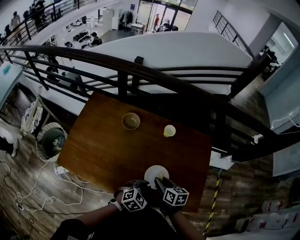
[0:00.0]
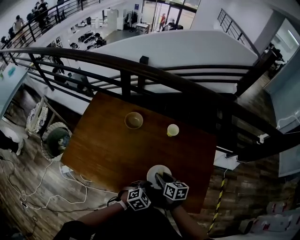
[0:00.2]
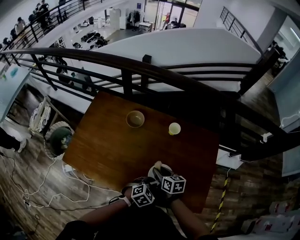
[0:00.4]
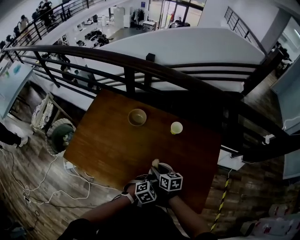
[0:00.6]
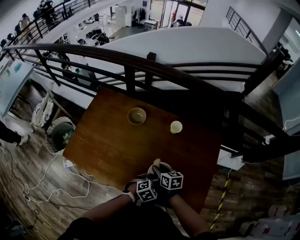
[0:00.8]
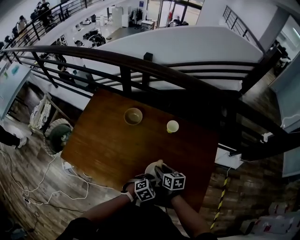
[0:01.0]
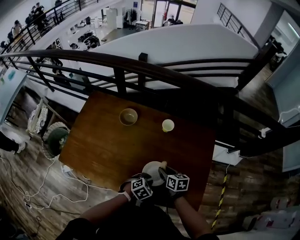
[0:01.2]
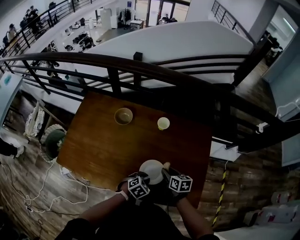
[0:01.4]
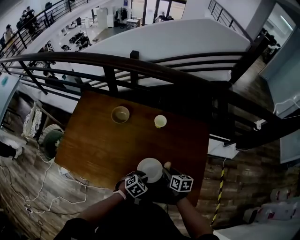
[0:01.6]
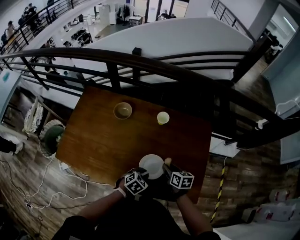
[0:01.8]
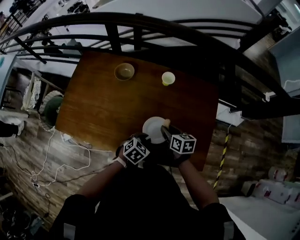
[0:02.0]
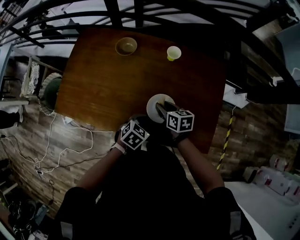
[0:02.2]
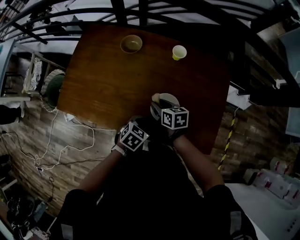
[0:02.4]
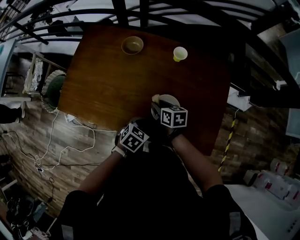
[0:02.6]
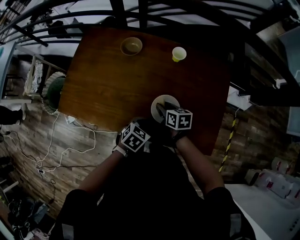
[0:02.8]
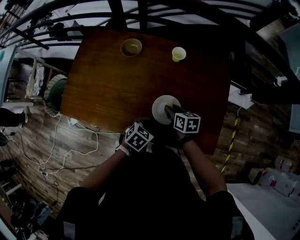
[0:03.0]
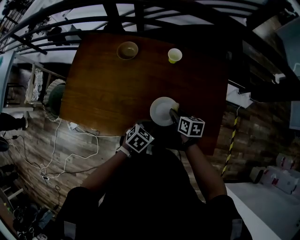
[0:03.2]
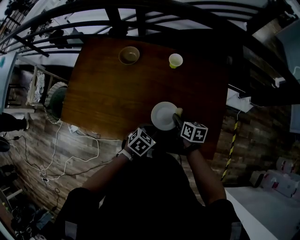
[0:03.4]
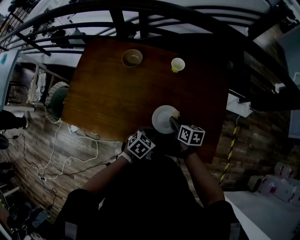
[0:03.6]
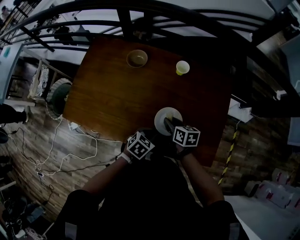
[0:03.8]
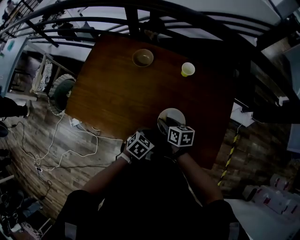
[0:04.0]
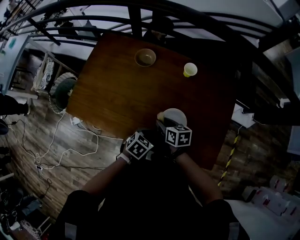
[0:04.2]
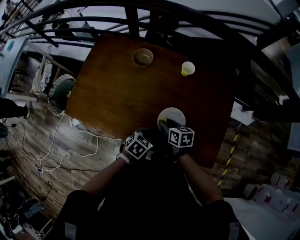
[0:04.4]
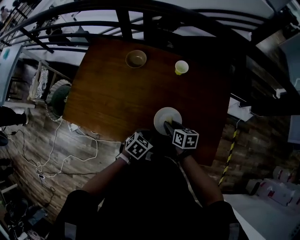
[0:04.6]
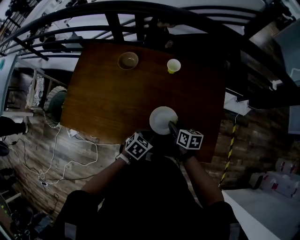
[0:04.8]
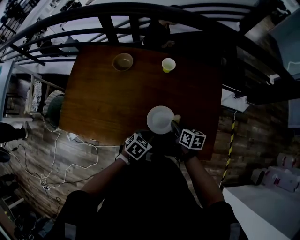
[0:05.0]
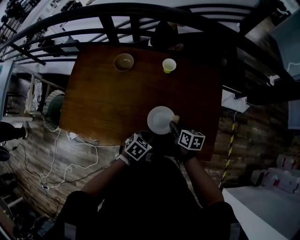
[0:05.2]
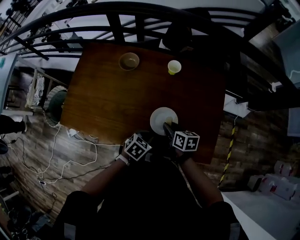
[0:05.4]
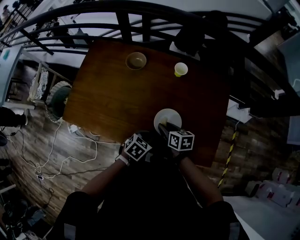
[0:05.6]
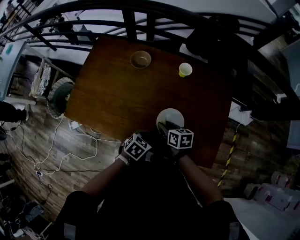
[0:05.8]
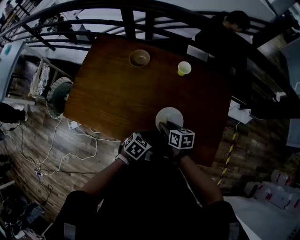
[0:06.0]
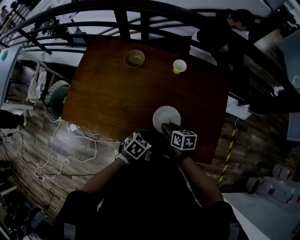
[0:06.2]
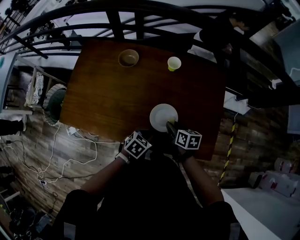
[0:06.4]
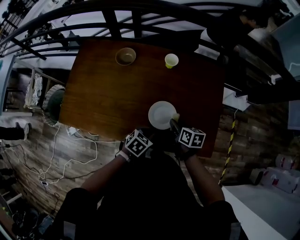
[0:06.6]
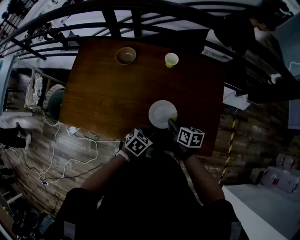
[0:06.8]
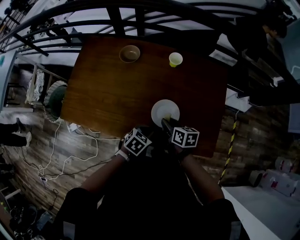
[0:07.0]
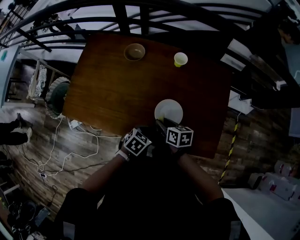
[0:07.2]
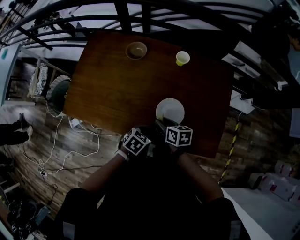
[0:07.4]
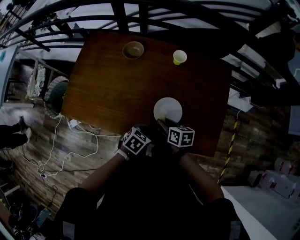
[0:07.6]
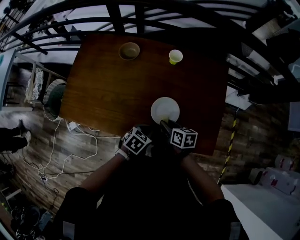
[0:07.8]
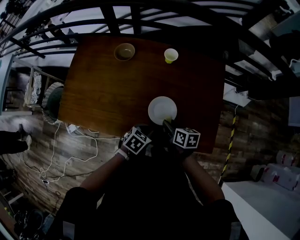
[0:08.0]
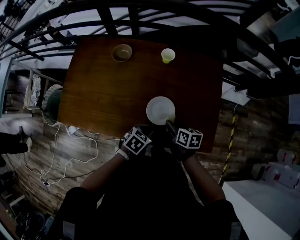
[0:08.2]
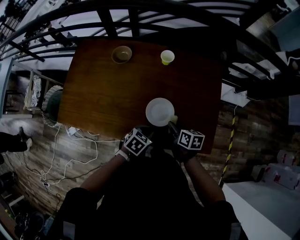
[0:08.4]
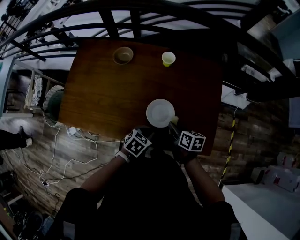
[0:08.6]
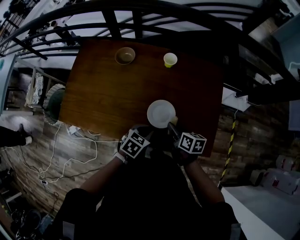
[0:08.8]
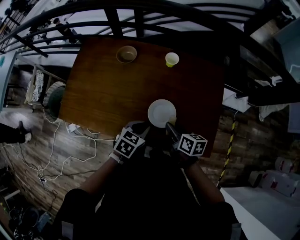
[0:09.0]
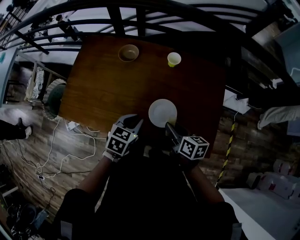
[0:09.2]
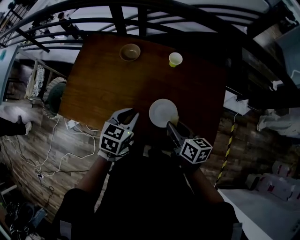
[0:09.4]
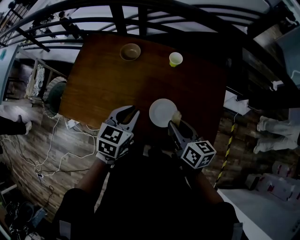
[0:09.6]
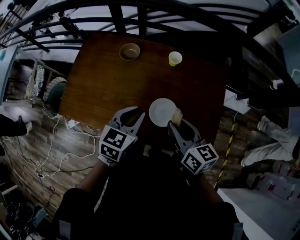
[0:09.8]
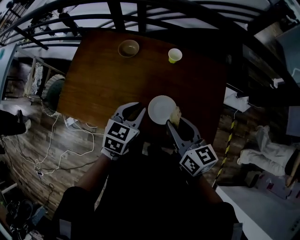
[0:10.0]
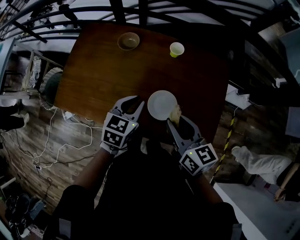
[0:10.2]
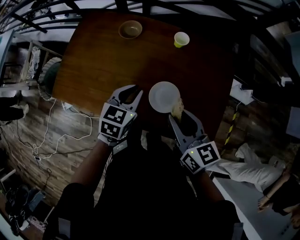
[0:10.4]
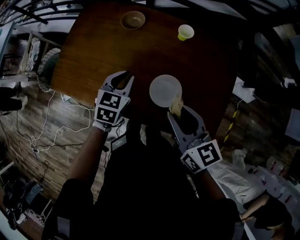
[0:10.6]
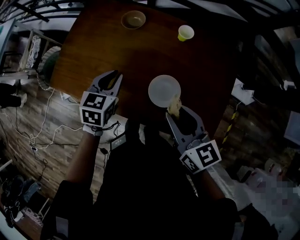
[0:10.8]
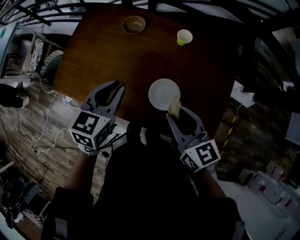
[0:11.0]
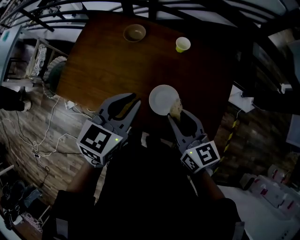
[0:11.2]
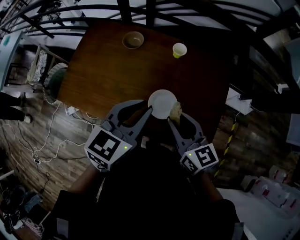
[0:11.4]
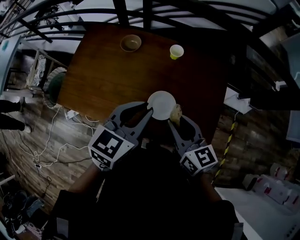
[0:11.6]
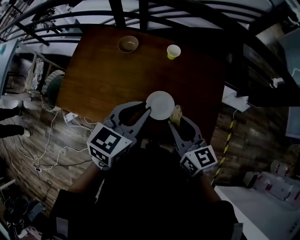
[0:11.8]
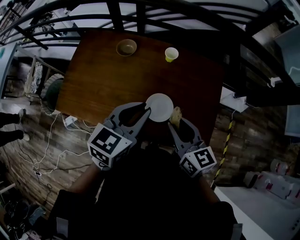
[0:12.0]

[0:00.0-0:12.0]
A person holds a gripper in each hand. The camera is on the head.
0:00.0 to 0:01.6: The left gripper goes about 10 cm downward, while the right gripper is displaced to the right and downward by roughly 15 cm.
0:01.6 to 0:03.0: The left gripper travels to the left by approximately 5 cm; the right gripper is displaced to the left by approximately 10 cm.
0:03.0 to 0:04.4: The right gripper moves some 5 cm.
0:04.4 to 0:06.0: The right gripper travels to the right and back again, roughly 10 cm each way.
0:06.0 to 0:07.6: The right gripper moves approximately 10 cm to the right and comes back.
0:07.6 to 0:09.0: The right gripper moves to the right and upward, approximately 10 cm, while the left gripper shifts about 10 cm upward.
0:09.0 to 0:10.4: The right gripper moves upward, some 10 cm, and swivels some 30 degrees, while the left gripper moves forward and upward, approximately 10 cm.
0:10.4 to 0:12.0: The left gripper goes approximately 15 cm upward and backward.

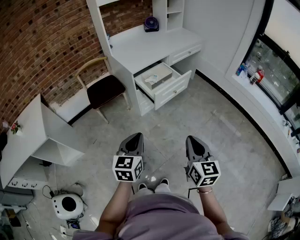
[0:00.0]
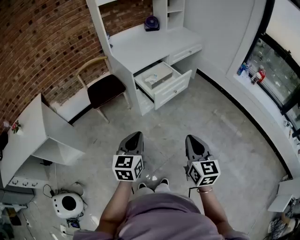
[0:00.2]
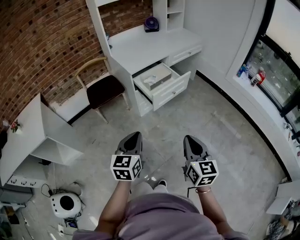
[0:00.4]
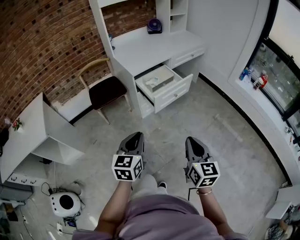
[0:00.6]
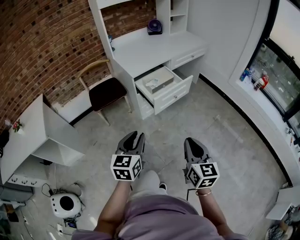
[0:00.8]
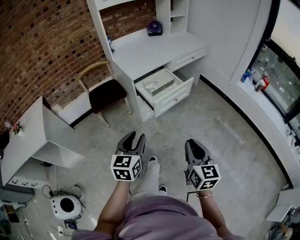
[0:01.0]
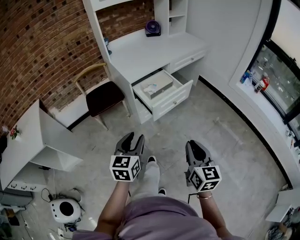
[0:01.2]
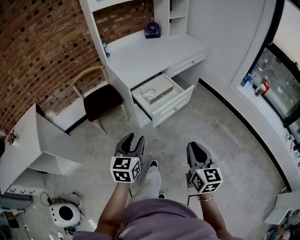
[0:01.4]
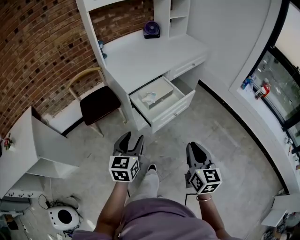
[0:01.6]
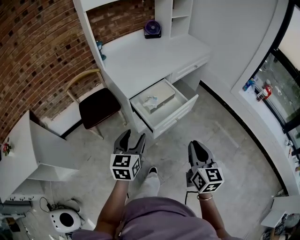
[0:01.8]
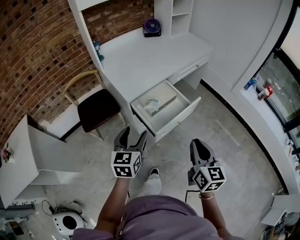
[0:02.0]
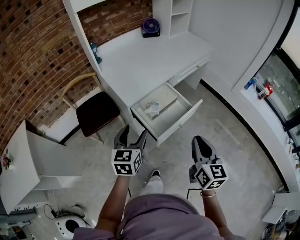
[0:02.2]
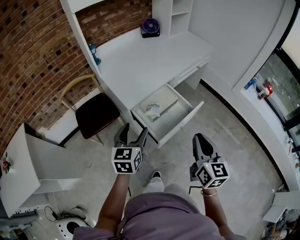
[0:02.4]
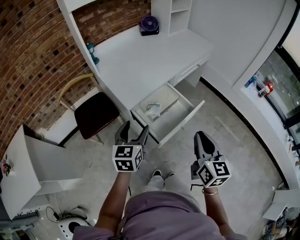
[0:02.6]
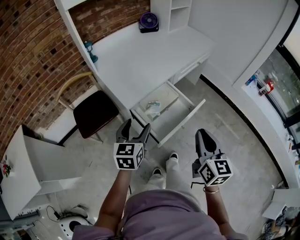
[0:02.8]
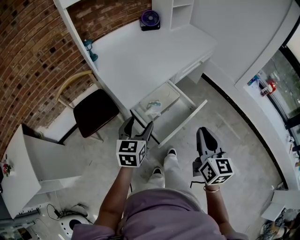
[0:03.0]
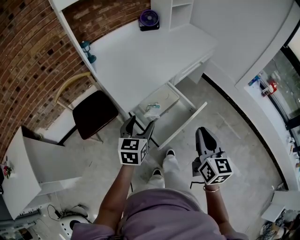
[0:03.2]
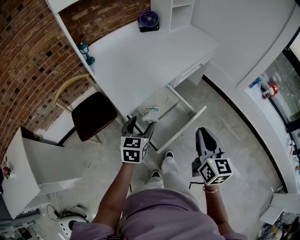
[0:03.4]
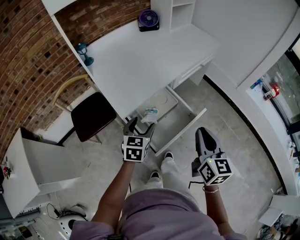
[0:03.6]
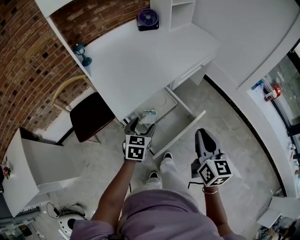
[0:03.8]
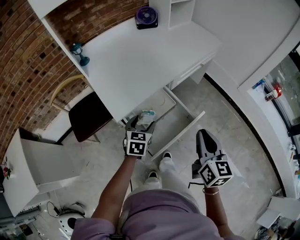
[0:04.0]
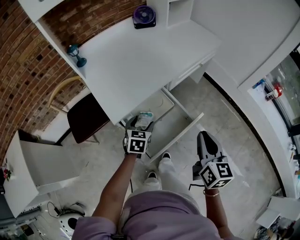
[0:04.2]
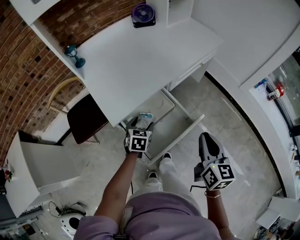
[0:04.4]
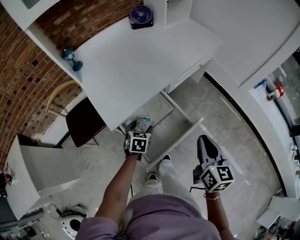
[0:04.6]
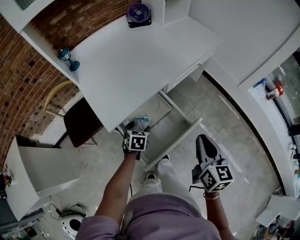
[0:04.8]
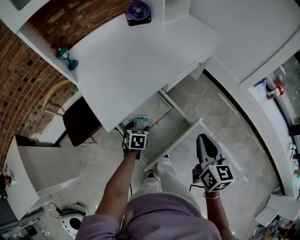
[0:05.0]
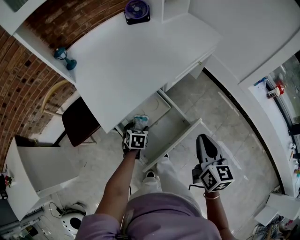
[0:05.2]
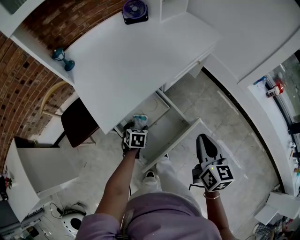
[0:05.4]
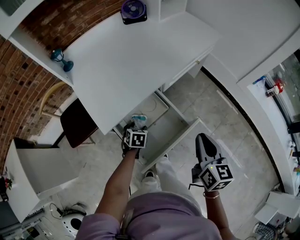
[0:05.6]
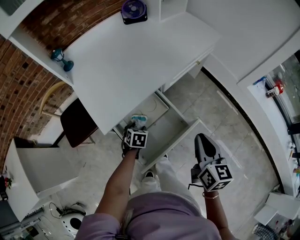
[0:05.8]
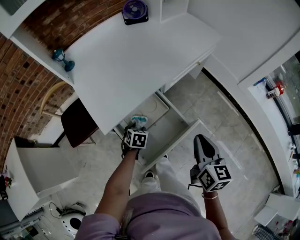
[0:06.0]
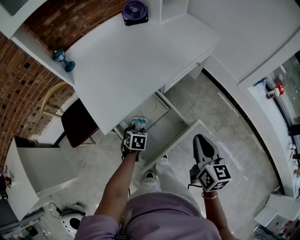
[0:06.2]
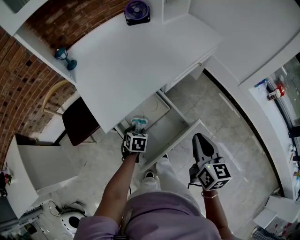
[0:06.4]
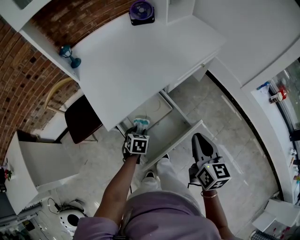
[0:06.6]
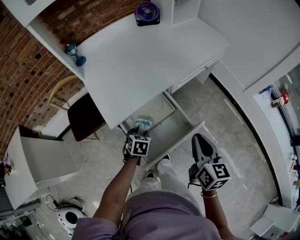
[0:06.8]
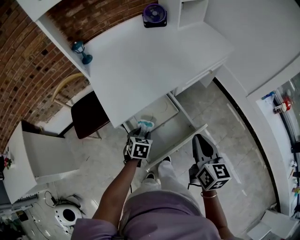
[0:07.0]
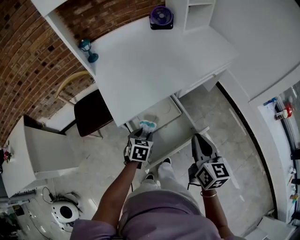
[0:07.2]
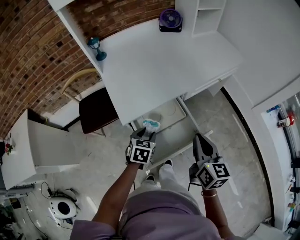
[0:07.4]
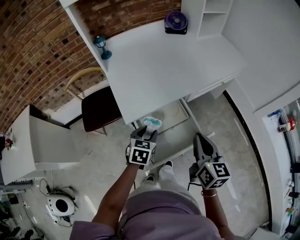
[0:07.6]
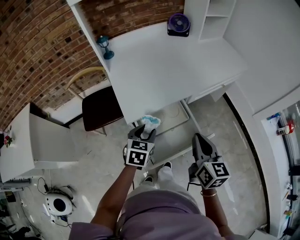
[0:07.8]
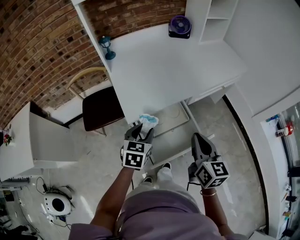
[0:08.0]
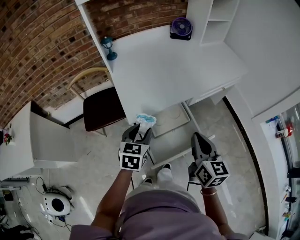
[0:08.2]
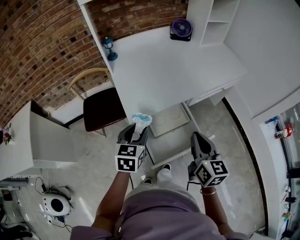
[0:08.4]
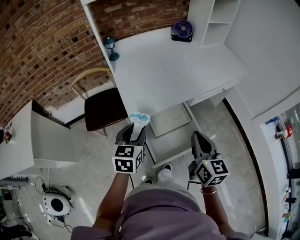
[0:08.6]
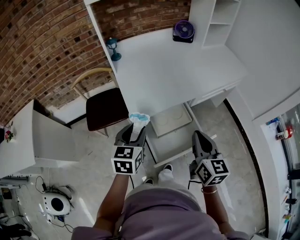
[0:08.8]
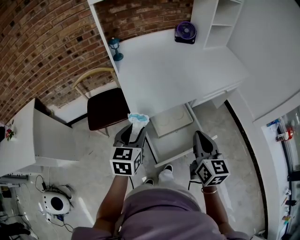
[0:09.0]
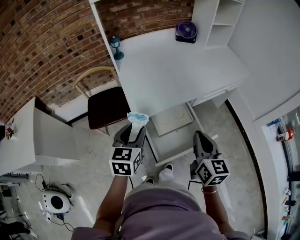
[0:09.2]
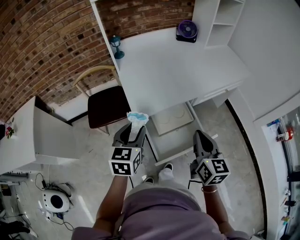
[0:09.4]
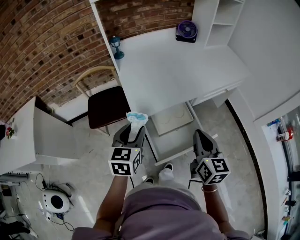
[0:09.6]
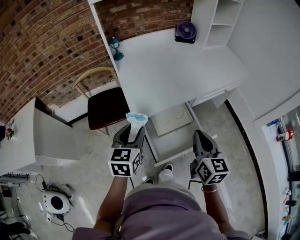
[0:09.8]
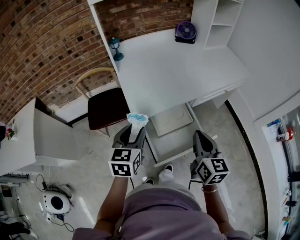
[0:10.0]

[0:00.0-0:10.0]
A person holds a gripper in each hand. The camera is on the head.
0:00.0 to 0:01.4: Both grippers travel together forward, some 15 cm. The left gripper opens its fingers.
0:01.4 to 0:02.8: The grippers both shift forward by roughly 25 cm. The left gripper opens up.
0:02.8 to 0:04.2: The left gripper heads forward, downward and to the right, covering roughly 20 cm, and changes its angle by about 20 degrees; the right gripper heads forward and to the right, covering some 15 cm.
0:04.2 to 0:05.8: The left gripper moves downward, about 10 cm, and swivels about 20 degrees, while the right gripper is displaced forward by approximately 5 cm.
0:05.8 to 0:07.2: The right gripper moves to the left, roughly 5 cm. Meanwhile the left gripper heads upward and backward, covering some 10 cm.
0:07.2 to 0:08.6: The right gripper goes about 5 cm to the left. Meanwhile the left gripper shifts roughly 20 cm upward and to the left, and swivels approximately 30 degrees.
0:08.6 to 0:10.0: There are only small adjustments of the grippers.

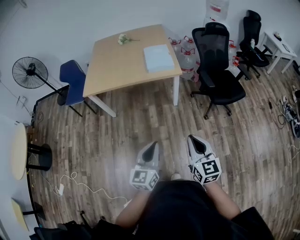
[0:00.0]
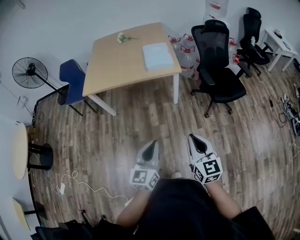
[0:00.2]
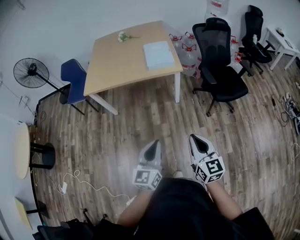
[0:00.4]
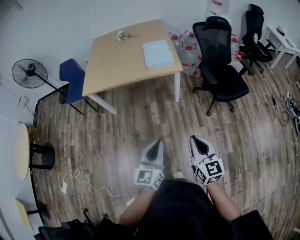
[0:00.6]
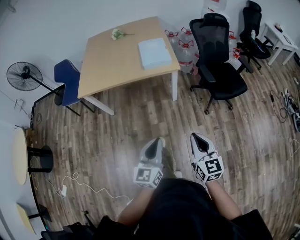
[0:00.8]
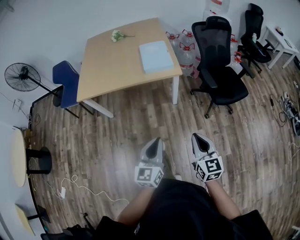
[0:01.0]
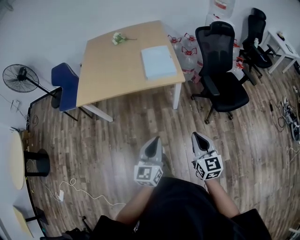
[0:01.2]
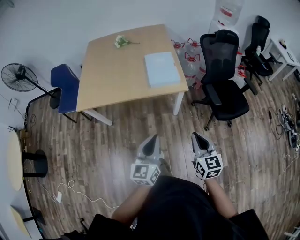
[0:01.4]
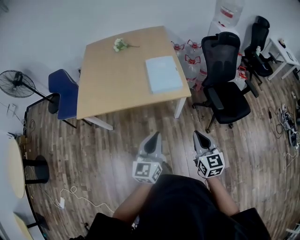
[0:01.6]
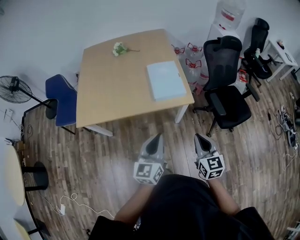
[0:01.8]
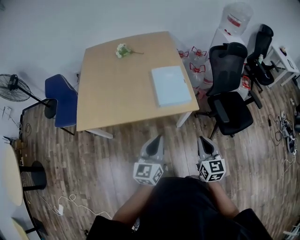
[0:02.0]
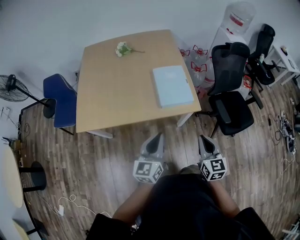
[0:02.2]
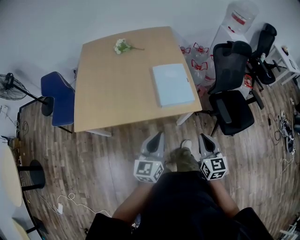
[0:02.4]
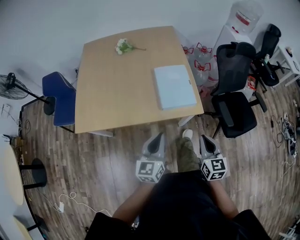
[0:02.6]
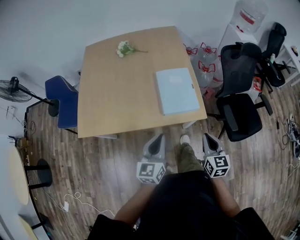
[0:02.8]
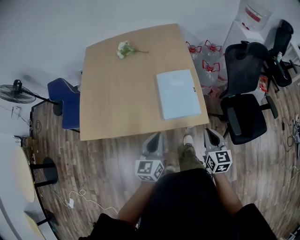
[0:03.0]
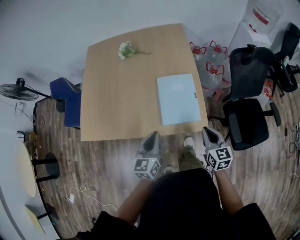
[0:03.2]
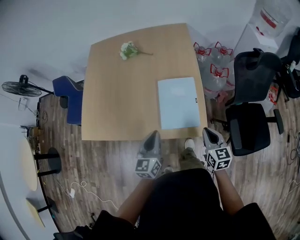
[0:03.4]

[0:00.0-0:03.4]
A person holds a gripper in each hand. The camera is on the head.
0:00.0 to 0:01.6: The two grippers go about 35 cm forward.
0:01.6 to 0:03.4: The pair of grippers is taken forward, about 40 cm.
